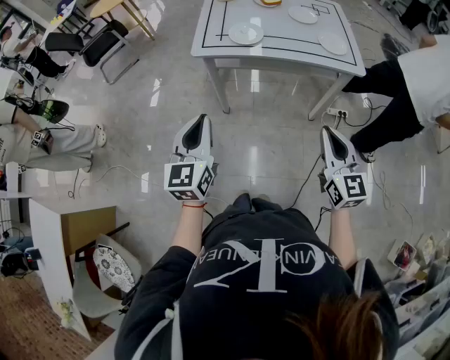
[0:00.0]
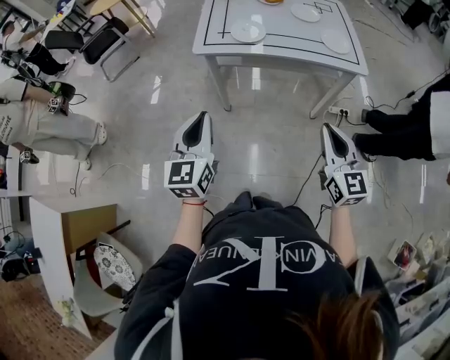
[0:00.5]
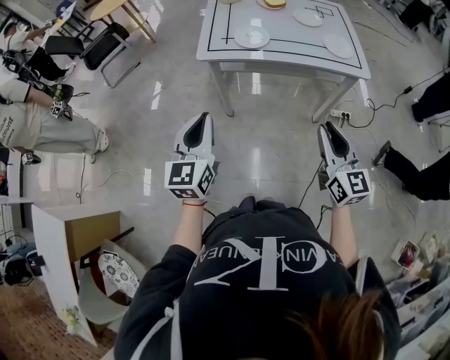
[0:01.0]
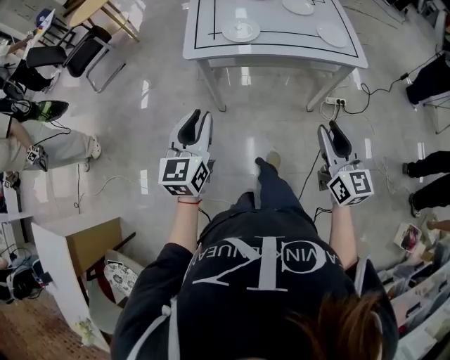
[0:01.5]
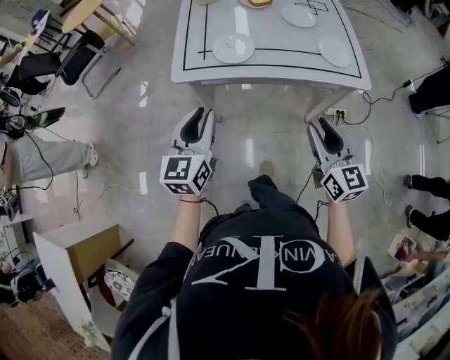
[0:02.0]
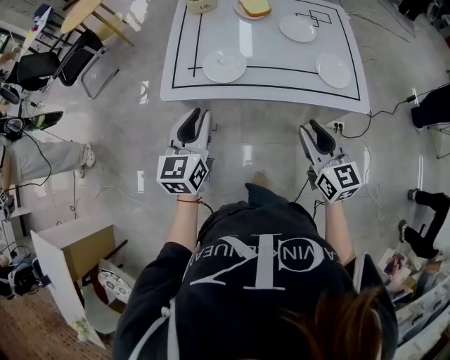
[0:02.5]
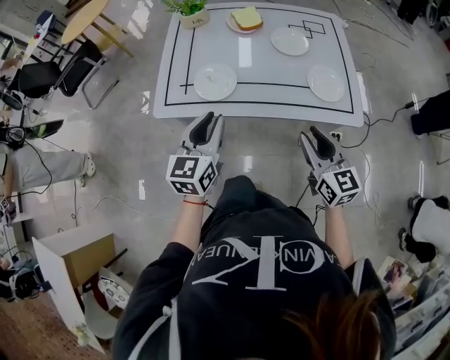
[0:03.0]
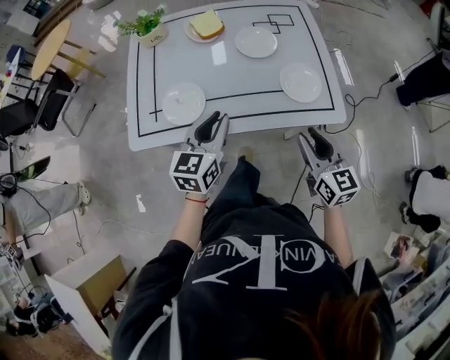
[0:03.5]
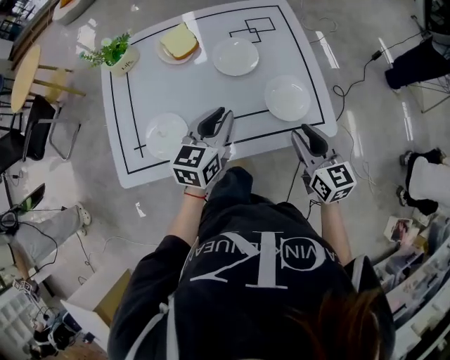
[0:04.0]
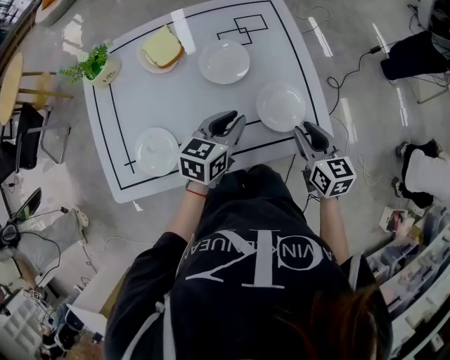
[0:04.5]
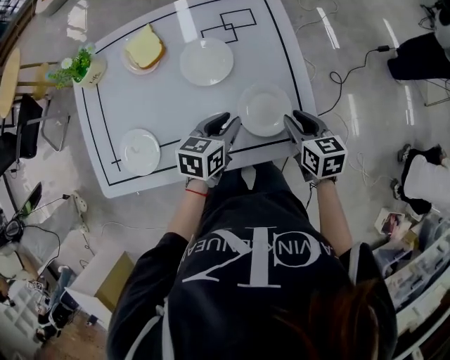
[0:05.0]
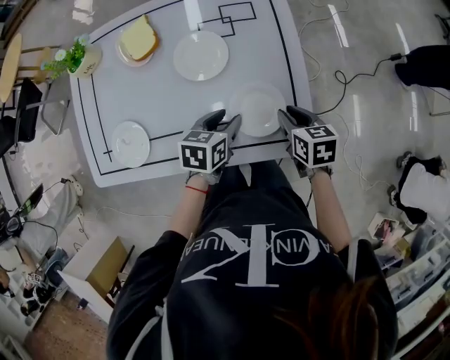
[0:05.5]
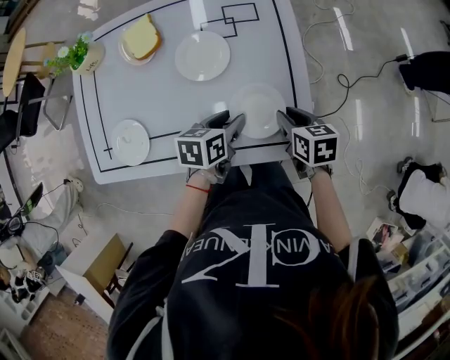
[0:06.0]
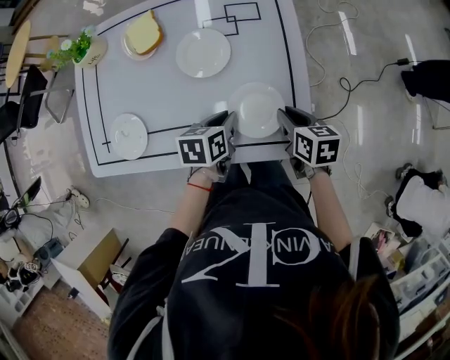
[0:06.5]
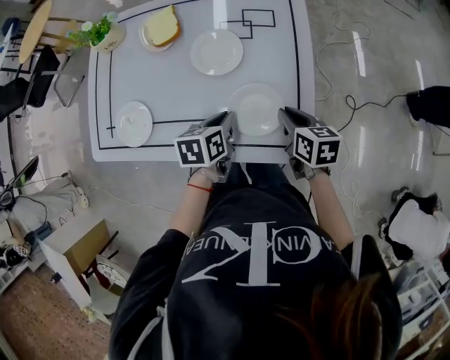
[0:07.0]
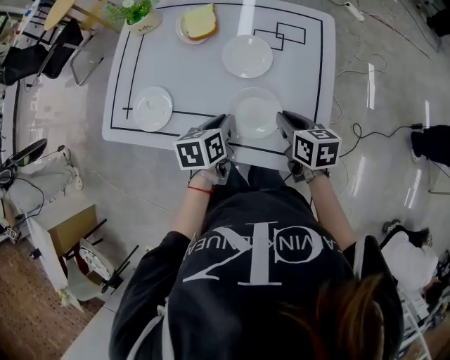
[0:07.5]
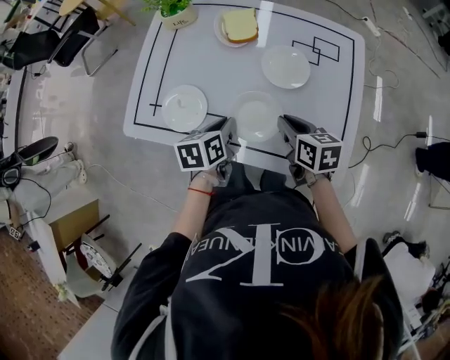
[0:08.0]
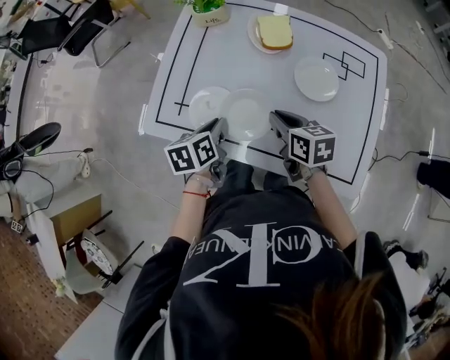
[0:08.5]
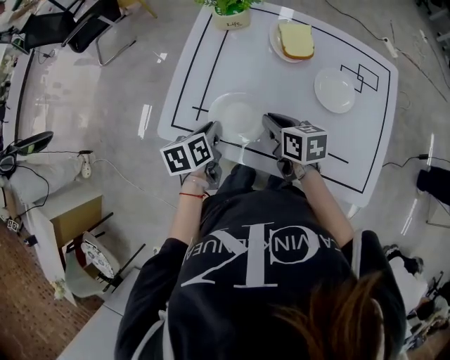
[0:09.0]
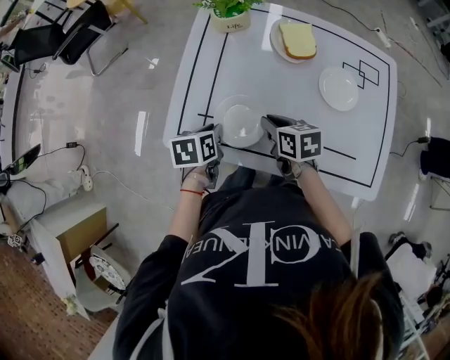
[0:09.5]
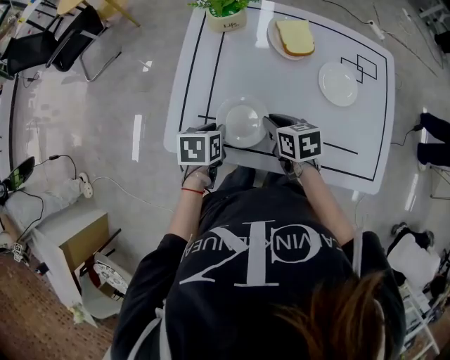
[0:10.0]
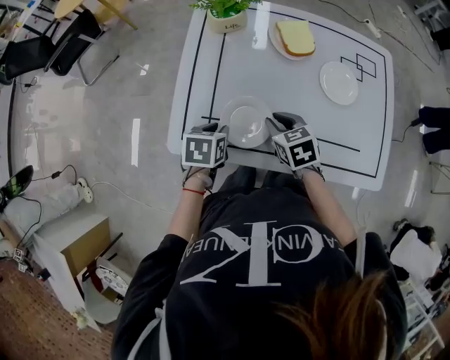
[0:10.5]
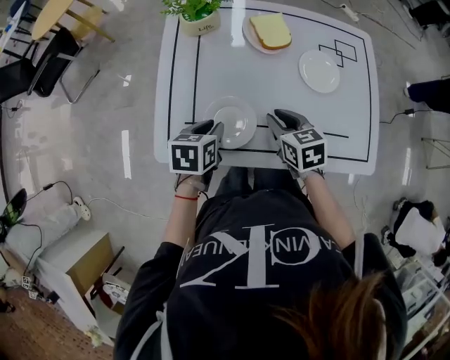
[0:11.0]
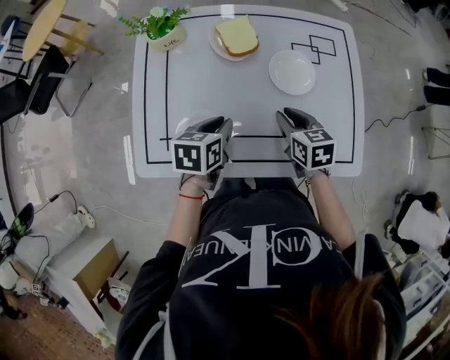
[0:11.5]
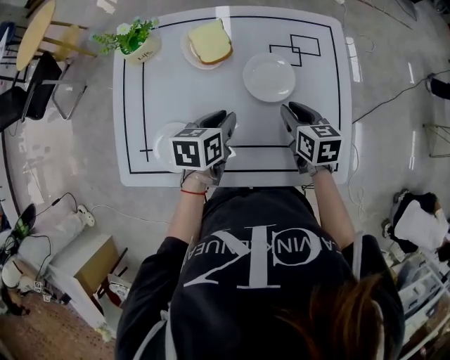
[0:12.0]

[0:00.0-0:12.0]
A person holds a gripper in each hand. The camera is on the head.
0:00.0 to 0:02.0: Both grippers travel together forward, some 20 cm. The right gripper opens its fingers, while the left gripper opens up.
0:02.0 to 0:04.0: Both grippers travel together forward and to the right, roughly 35 cm. The left gripper changes its angle by approximately 30 degrees.
0:04.0 to 0:06.0: The right gripper is displaced forward, downward and to the right by some 20 cm, and rotates some 30 degrees. Meanwhile the left gripper heads to the right, downward and forward, covering approximately 20 cm, changes its angle by approximately 40 degrees, and opens.
0:06.0 to 0:08.0: The left gripper shifts by roughly 20 cm, rotates approximately 30 degrees, and closes up. The right gripper changes place by some 20 cm, and changes its angle by some 20 degrees.
0:08.0 to 0:10.0: The two grippers go roughly 20 cm to the left.
0:10.0 to 0:12.0: The right gripper is displaced to the right by some 25 cm, and changes its angle by approximately 20 degrees. The left gripper is displaced to the right and forward by about 25 cm.

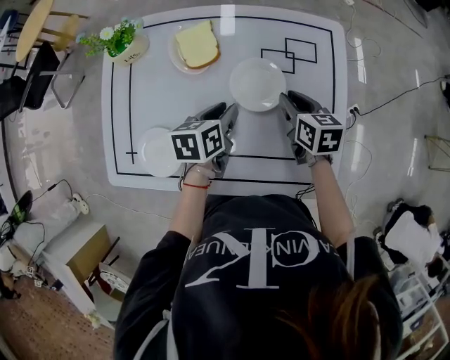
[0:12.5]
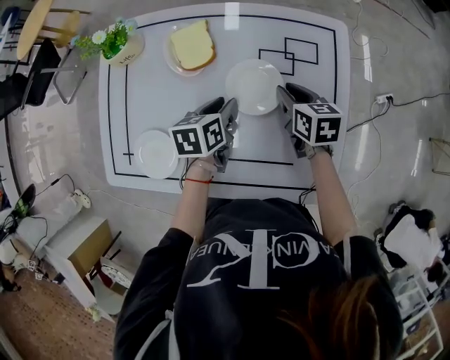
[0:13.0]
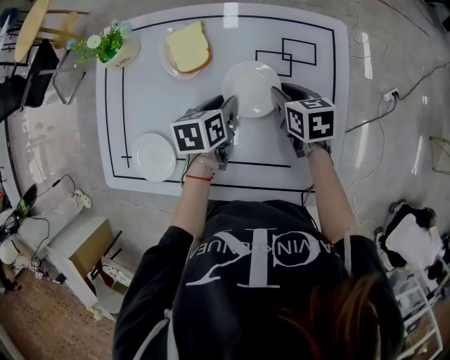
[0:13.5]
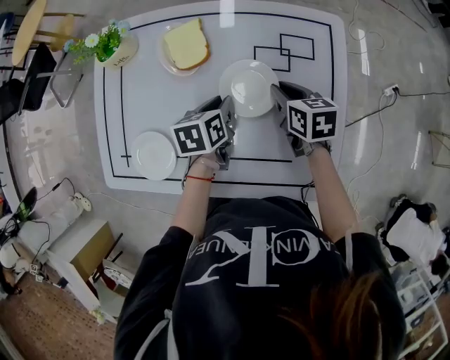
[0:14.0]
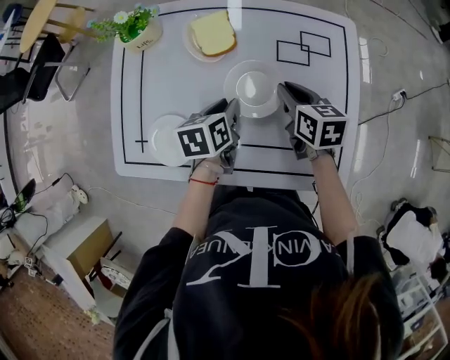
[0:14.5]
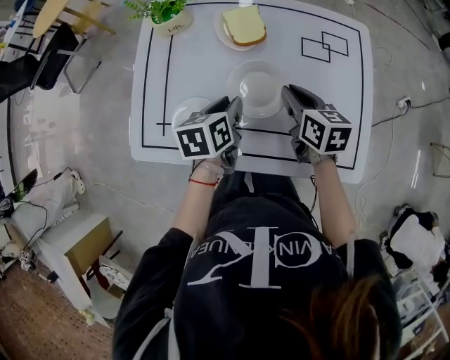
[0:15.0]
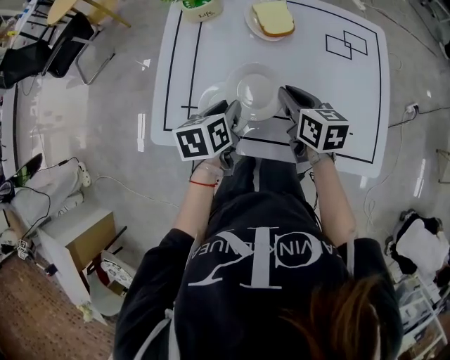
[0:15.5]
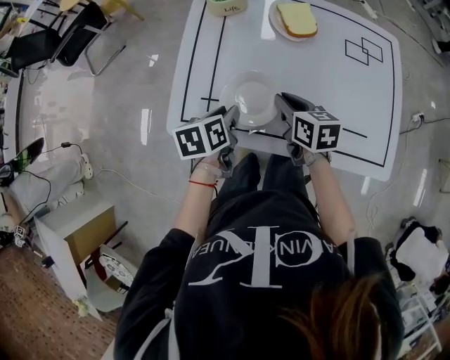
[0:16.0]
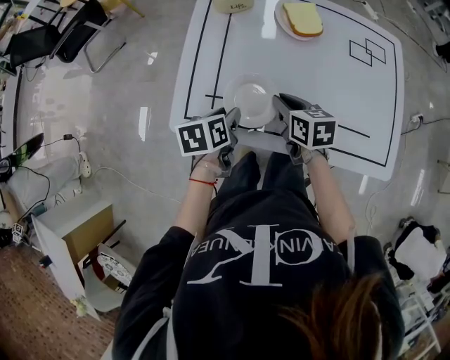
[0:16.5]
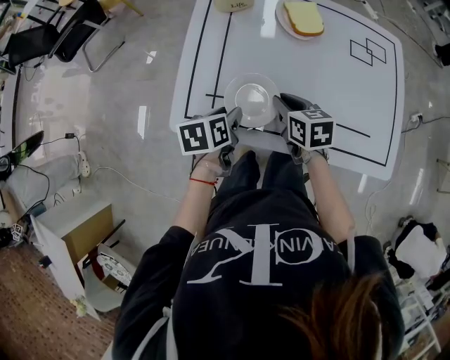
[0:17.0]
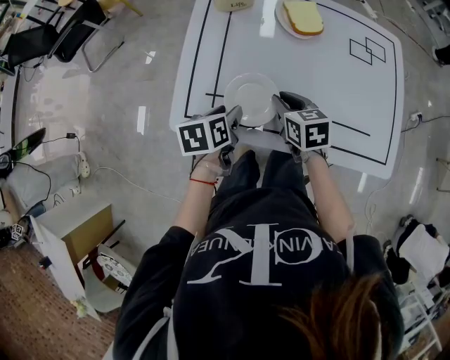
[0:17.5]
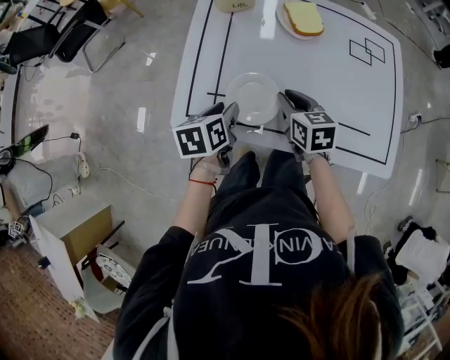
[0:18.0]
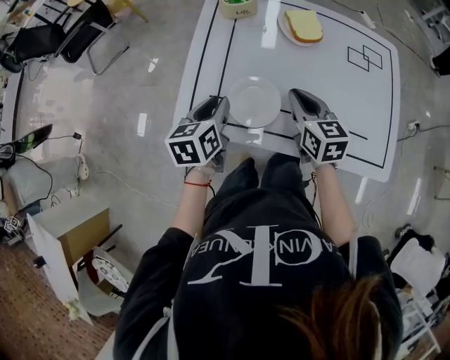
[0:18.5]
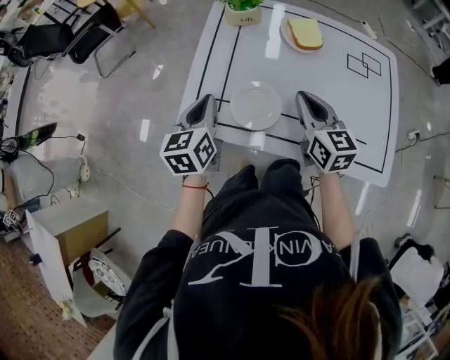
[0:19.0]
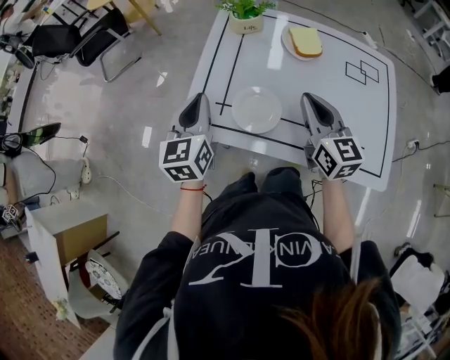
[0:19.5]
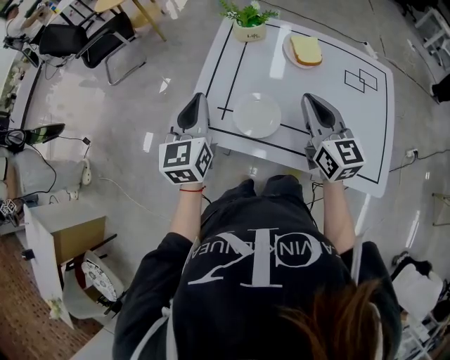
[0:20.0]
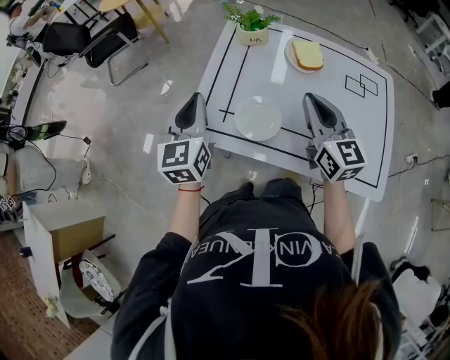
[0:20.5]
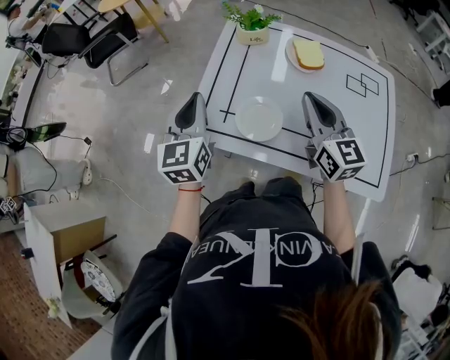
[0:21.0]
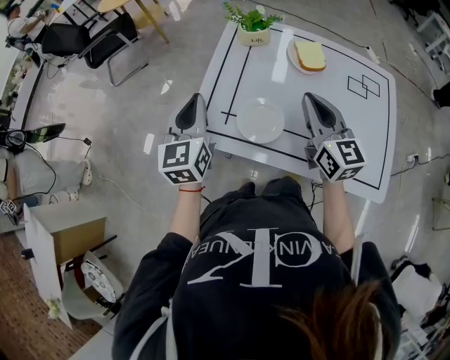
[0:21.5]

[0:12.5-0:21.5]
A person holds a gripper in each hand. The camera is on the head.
0:12.5 to 0:14.5: The right gripper travels to the left by about 5 cm.
0:14.5 to 0:17.0: The two grippers go some 30 cm to the left and backward.
0:17.0 to 0:19.5: The left gripper shifts roughly 20 cm upward and to the left, tips its fingers upward by some 30 degrees, and closes its fingers. Meanwhile the right gripper goes some 15 cm upward, and tilts its fingers approximately 30 degrees upward.
0:19.5 to 0:21.5: The grippers stay close to where they were, moving slightly.
